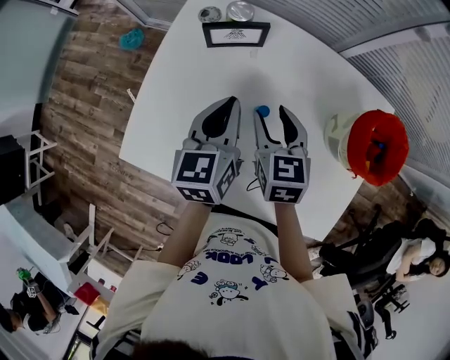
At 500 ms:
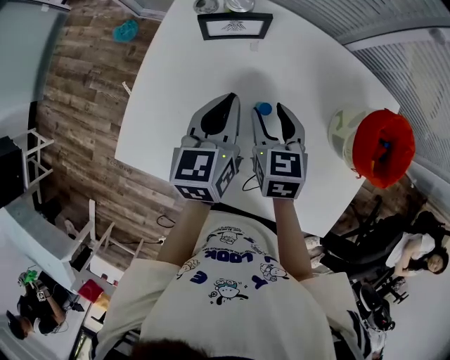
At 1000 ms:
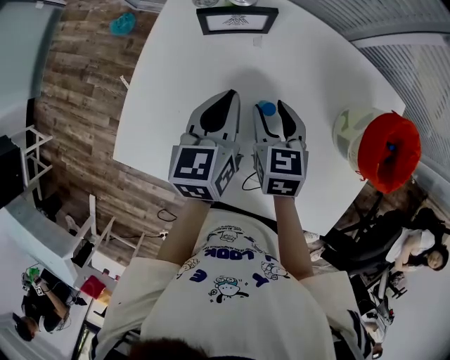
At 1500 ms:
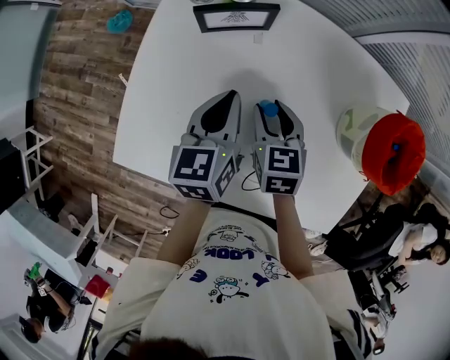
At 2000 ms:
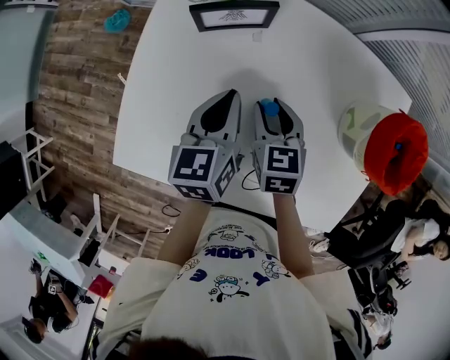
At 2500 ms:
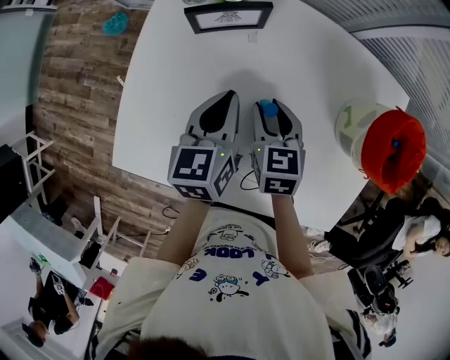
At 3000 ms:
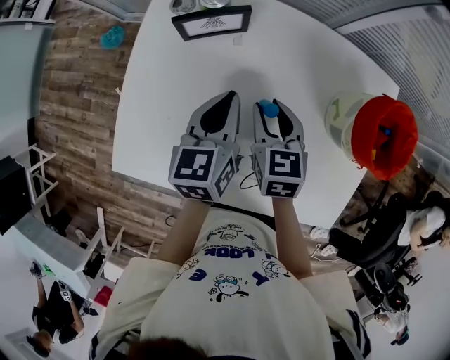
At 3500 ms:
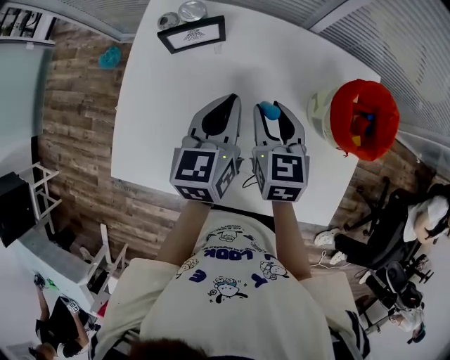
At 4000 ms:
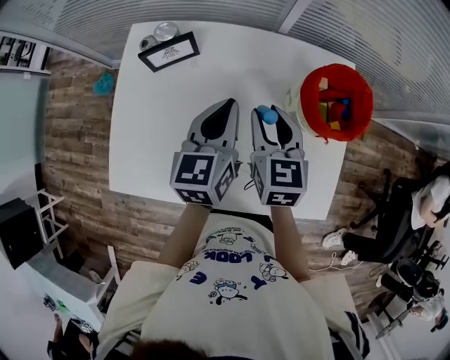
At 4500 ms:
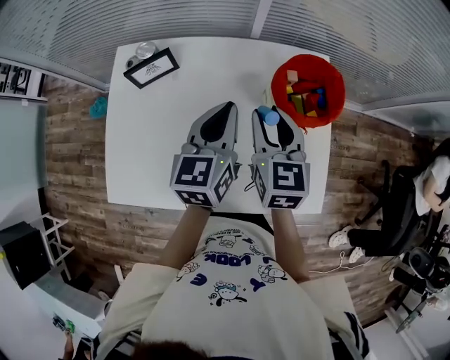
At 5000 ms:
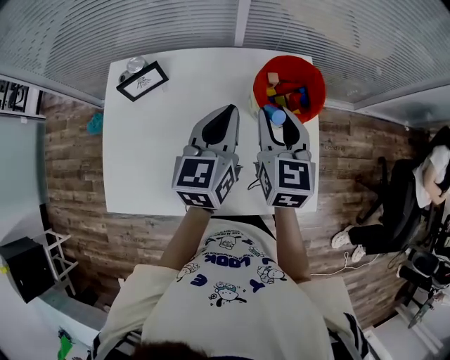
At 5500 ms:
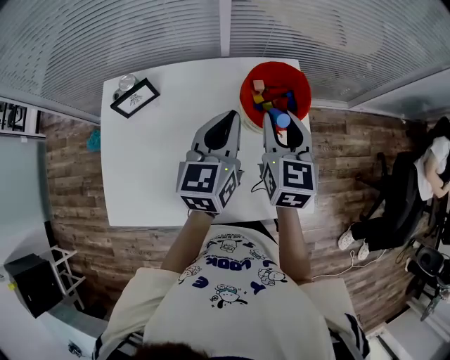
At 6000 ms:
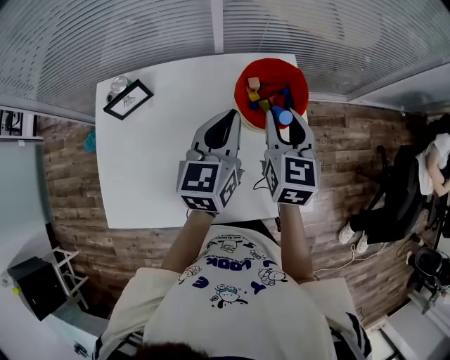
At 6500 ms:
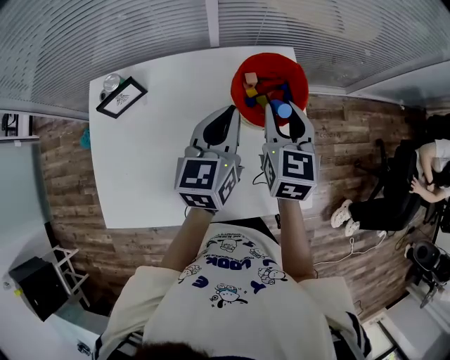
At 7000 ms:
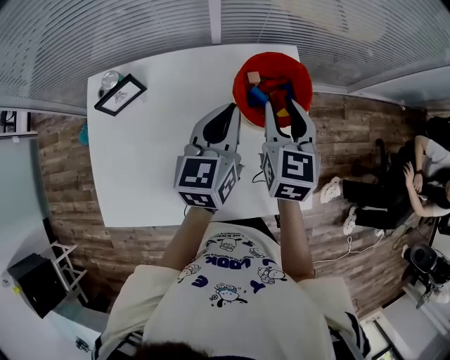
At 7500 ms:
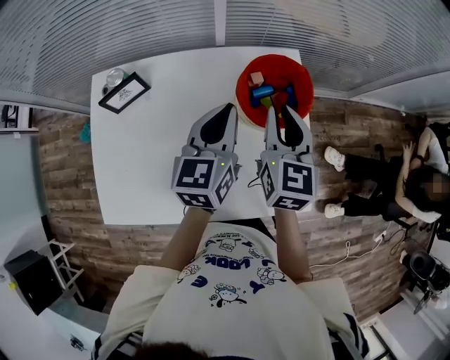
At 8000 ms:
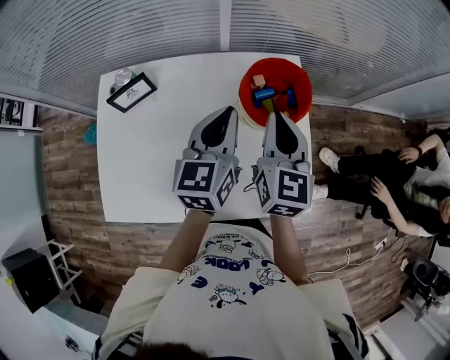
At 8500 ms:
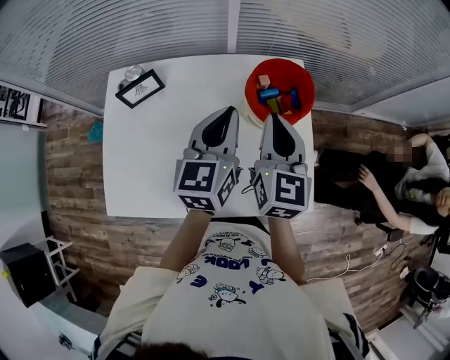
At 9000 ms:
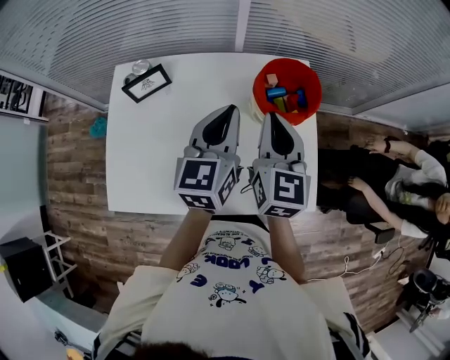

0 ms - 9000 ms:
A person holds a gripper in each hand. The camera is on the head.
0 ms - 2000 ms: The two grippers go some 5 cm downward.
2000 ms - 4500 ms: The grippers both shift to the right and upward by roughly 25 cm. The right gripper rotates approximately 30 degrees. Meanwhile the left gripper turns by about 20 degrees.
4500 ms - 7000 ms: The left gripper travels to the right by about 10 cm, while the right gripper goes about 10 cm to the right and forward.
7000 ms - 9000 ms: The right gripper travels backward, to the left and upward by approximately 10 cm, and closes up; the left gripper moves backward, roughly 5 cm.

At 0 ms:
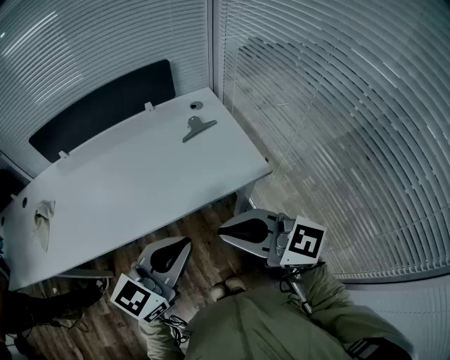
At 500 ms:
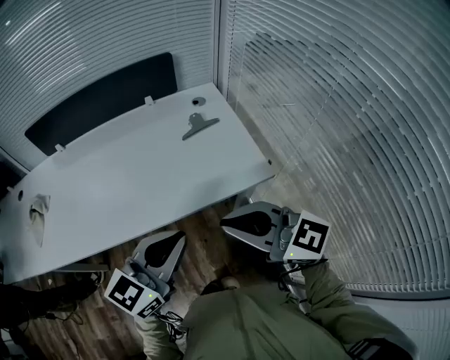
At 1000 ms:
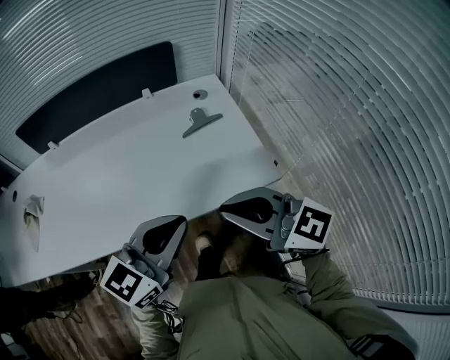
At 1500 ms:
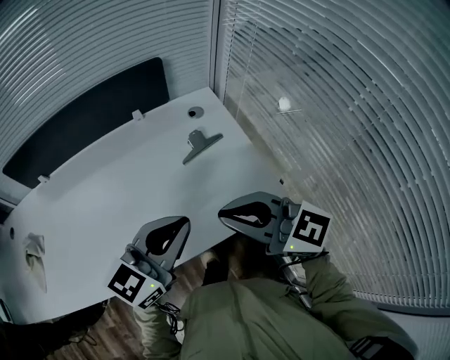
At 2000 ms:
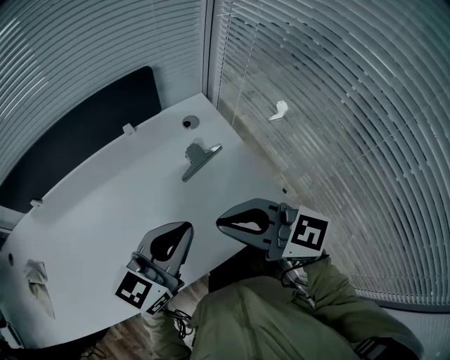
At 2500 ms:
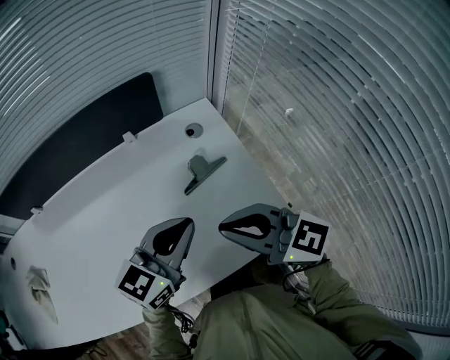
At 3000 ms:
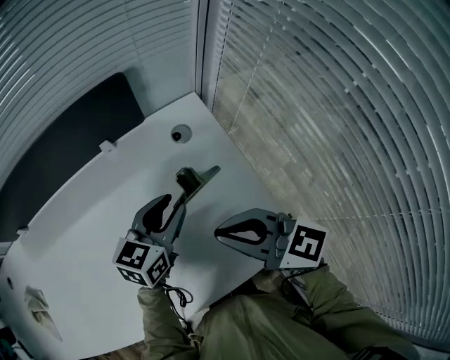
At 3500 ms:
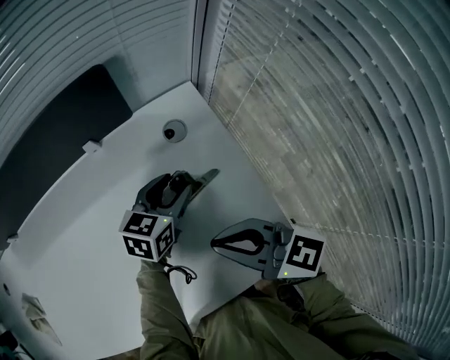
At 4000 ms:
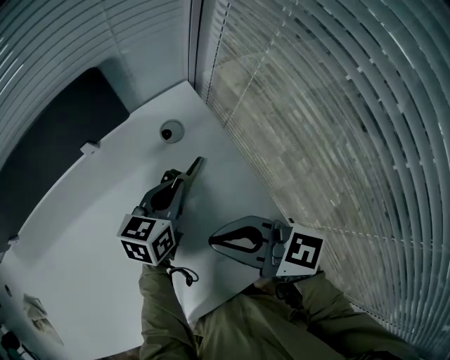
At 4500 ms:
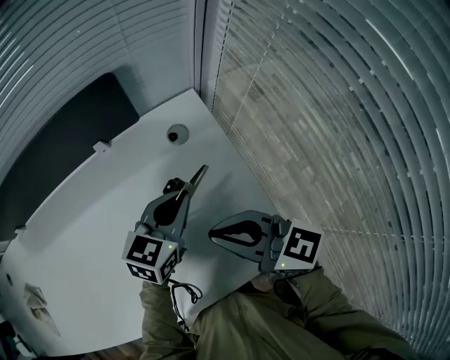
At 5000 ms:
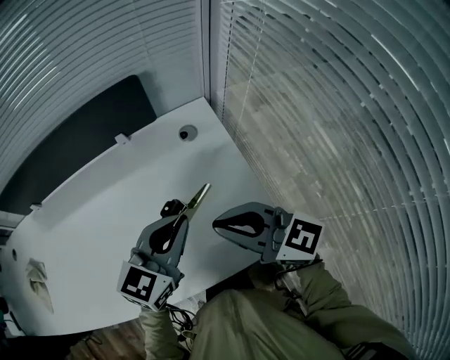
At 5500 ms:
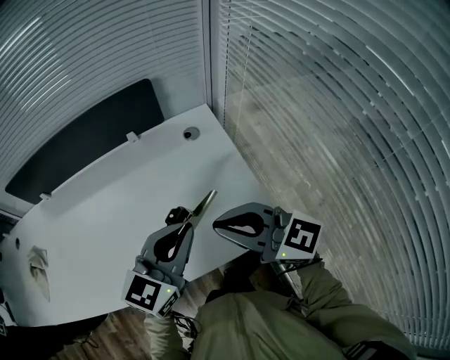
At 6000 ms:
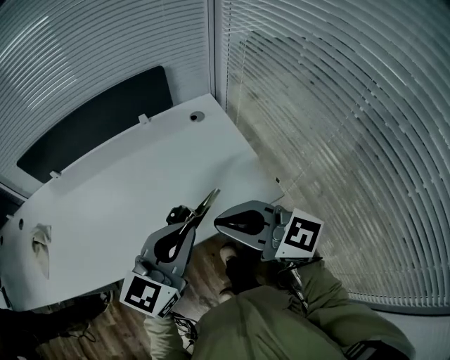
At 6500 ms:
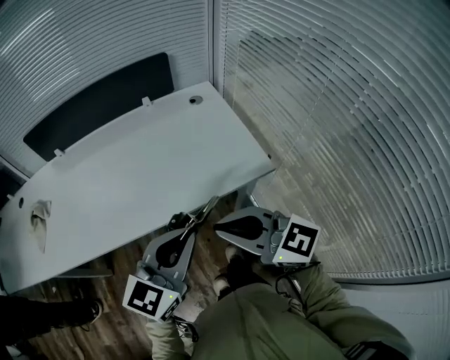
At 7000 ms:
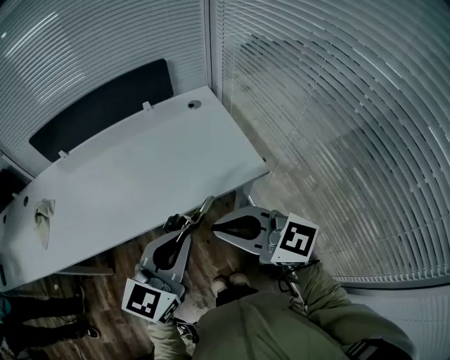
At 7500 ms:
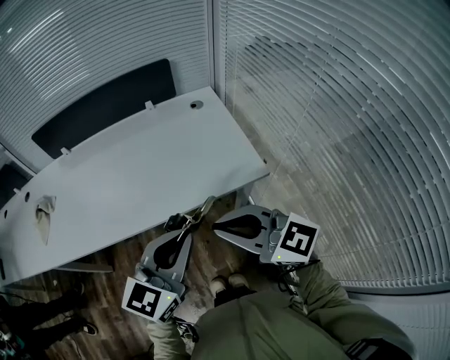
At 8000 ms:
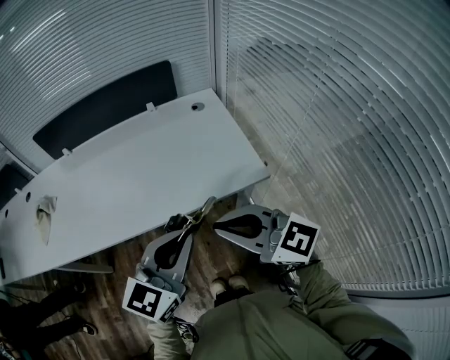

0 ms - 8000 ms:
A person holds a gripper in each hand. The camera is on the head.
0 ms - 2000 ms: Both grippers travel together forward, approximately 25 cm.
2000 ms - 4000 ms: The right gripper shifts about 15 cm forward, downward and to the right, while the left gripper shifts some 30 cm forward, downward and to the right, rotates some 30 degrees, and opens and closes again.
4000 ms - 6000 ms: The right gripper travels backward and upward by about 25 cm, and rotates approximately 20 degrees. The left gripper shifts some 40 cm backward and upward, and rotates roughly 30 degrees.
6000 ms - 8000 ms: Both grippers move backward, approximately 15 cm.

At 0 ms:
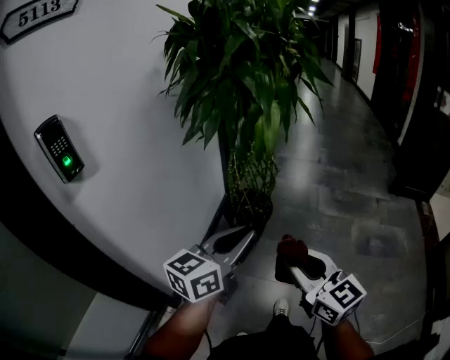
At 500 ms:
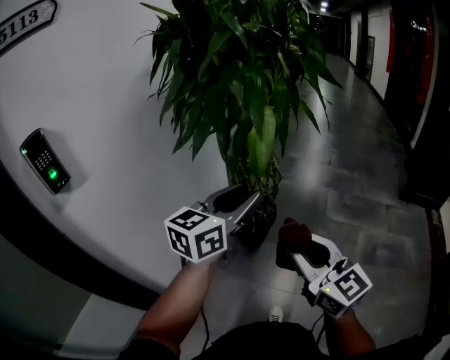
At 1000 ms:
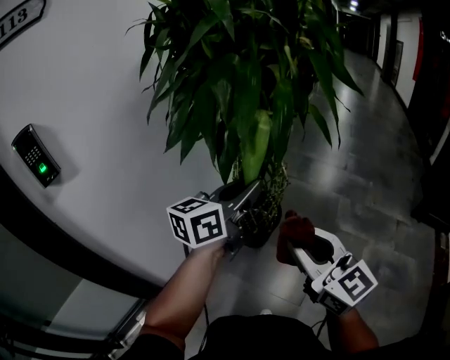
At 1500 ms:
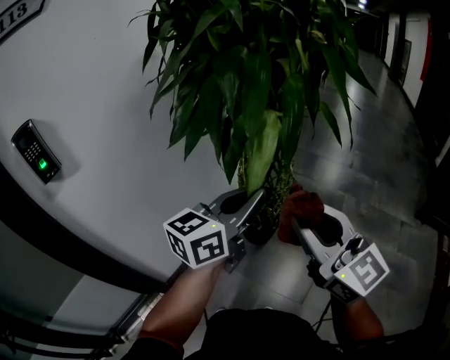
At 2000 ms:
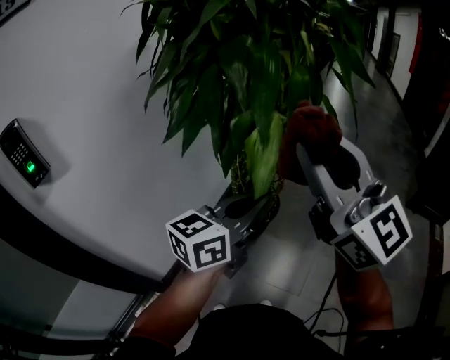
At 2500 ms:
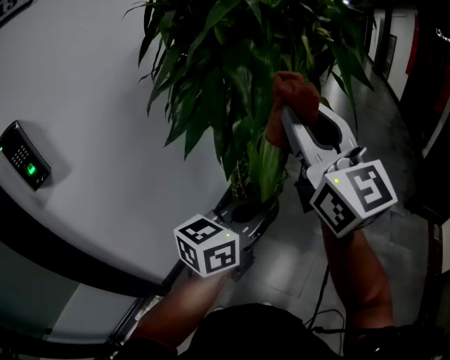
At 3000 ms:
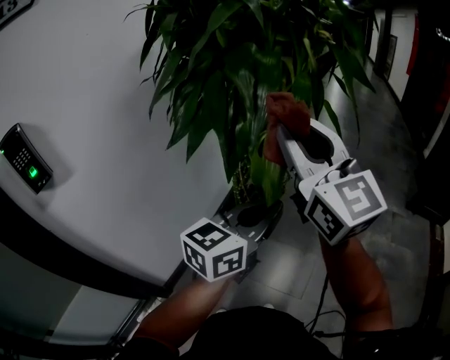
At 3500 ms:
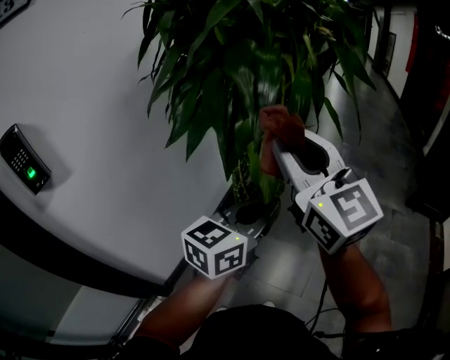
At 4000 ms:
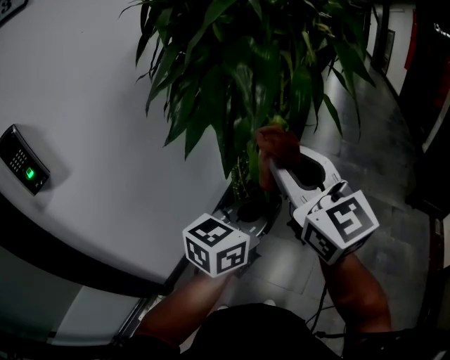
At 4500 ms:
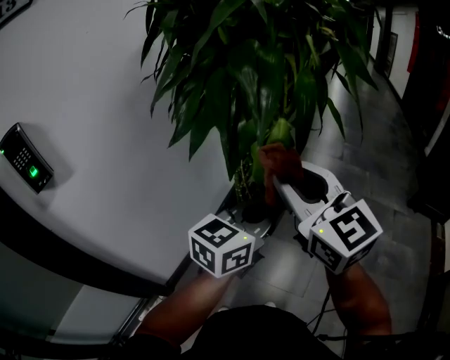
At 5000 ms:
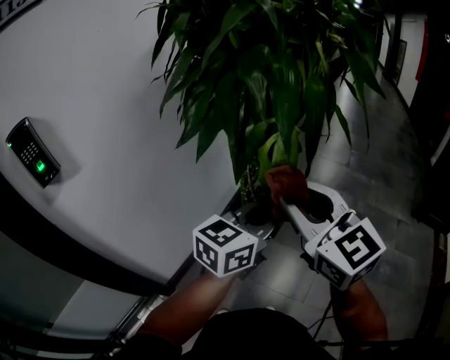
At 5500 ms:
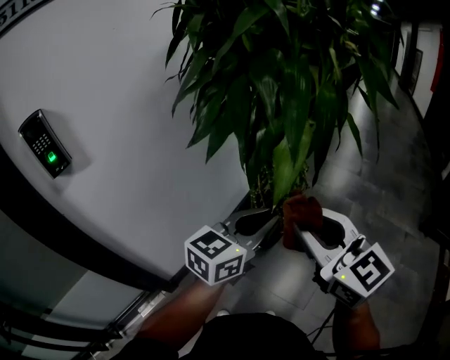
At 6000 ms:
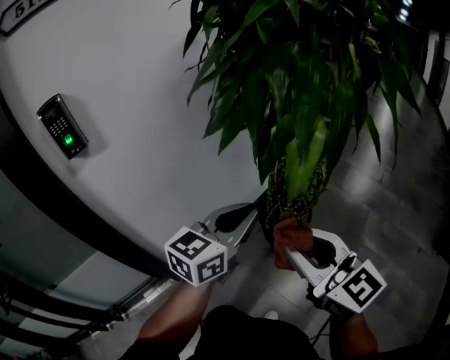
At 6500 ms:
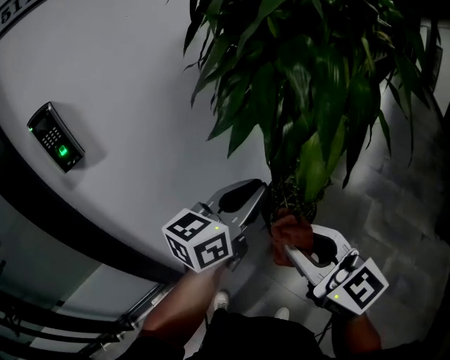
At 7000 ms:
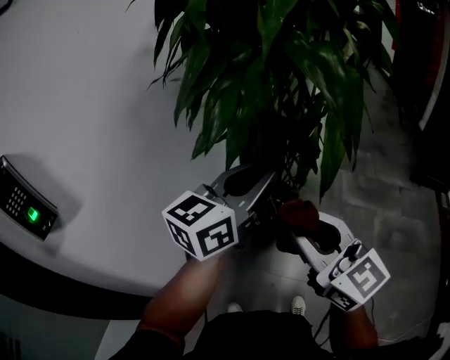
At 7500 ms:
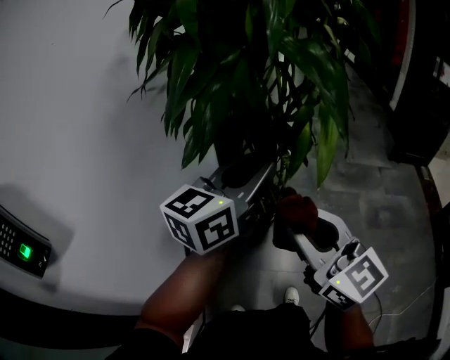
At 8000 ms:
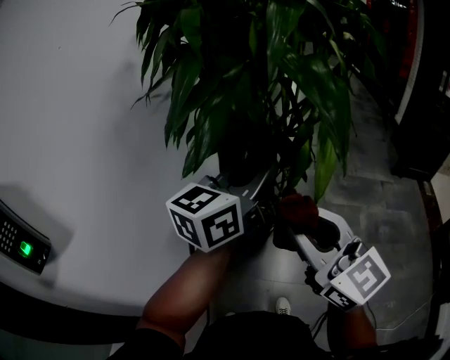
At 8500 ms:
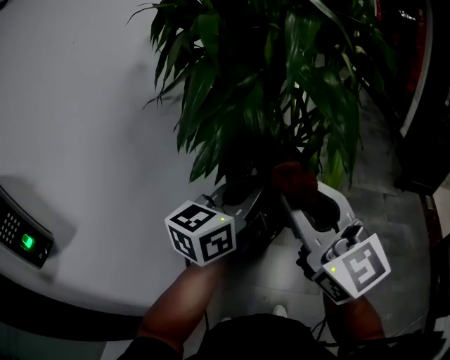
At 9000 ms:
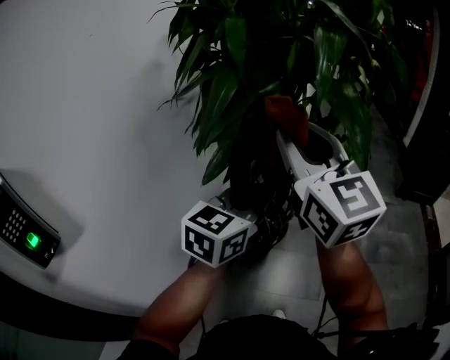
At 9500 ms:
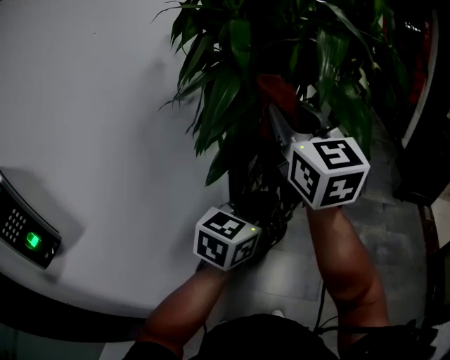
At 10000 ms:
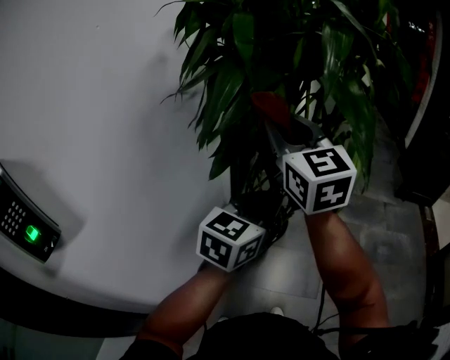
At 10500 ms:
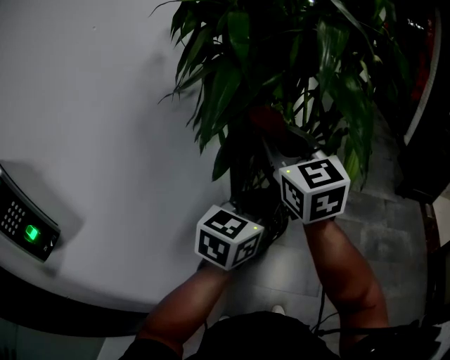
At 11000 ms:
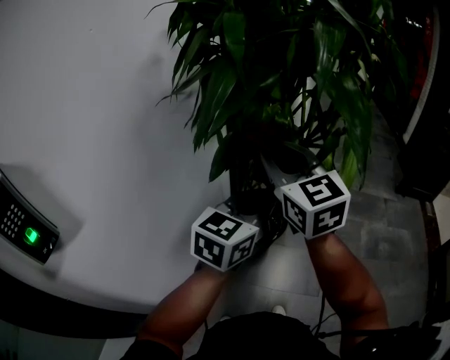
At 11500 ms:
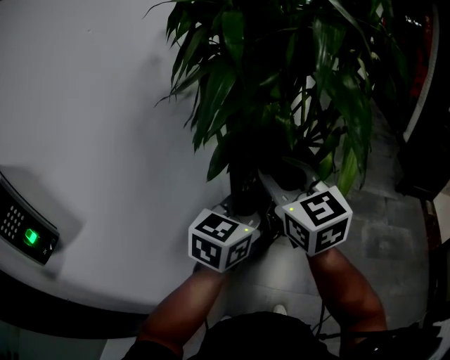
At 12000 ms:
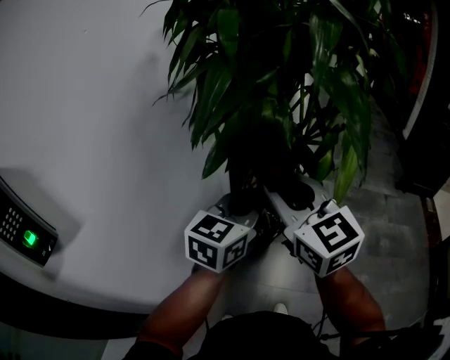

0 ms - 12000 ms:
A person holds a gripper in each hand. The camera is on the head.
0 ms - 2000 ms: The left gripper goes roughly 20 cm forward and to the right, and opens, then closes again. The right gripper moves forward and upward, roughly 35 cm, and rotates approximately 30 degrees.
2000 ms - 4000 ms: The right gripper goes about 5 cm downward.
4000 ms - 6000 ms: The left gripper is displaced to the left by about 10 cm, and changes its angle by about 20 degrees. Meanwhile the right gripper heads downward and backward, covering about 15 cm, and swivels roughly 30 degrees.
6000 ms - 8000 ms: The left gripper goes about 10 cm upward, and changes its angle by about 40 degrees. Meanwhile the right gripper changes place by some 10 cm, and rotates approximately 40 degrees.
8000 ms - 10000 ms: The right gripper moves forward, to the left and upward, about 20 cm. Meanwhile the left gripper shifts approximately 10 cm downward.
10000 ms - 12000 ms: The right gripper moves downward and backward, some 10 cm.
